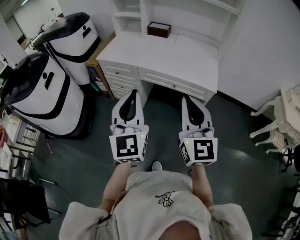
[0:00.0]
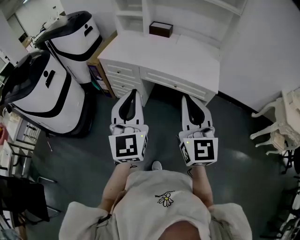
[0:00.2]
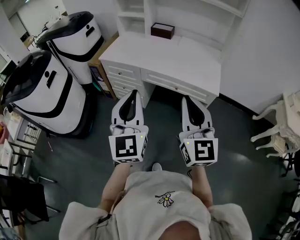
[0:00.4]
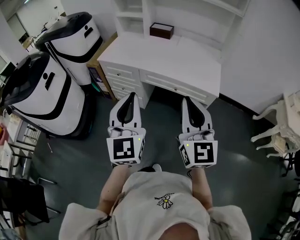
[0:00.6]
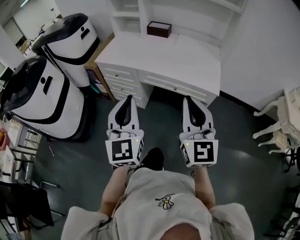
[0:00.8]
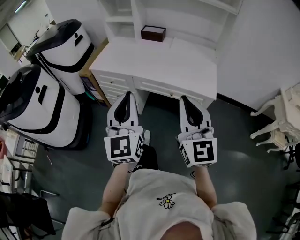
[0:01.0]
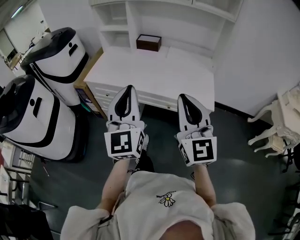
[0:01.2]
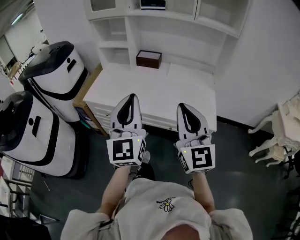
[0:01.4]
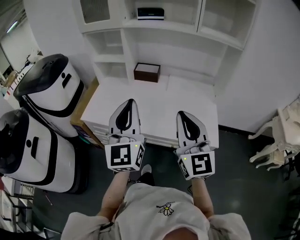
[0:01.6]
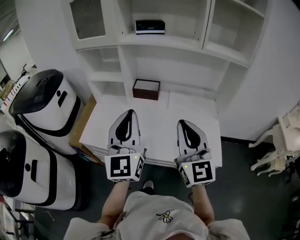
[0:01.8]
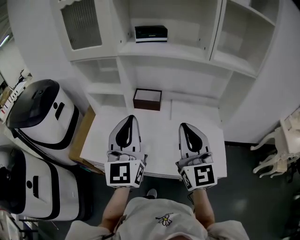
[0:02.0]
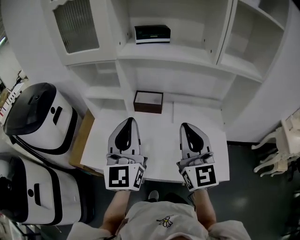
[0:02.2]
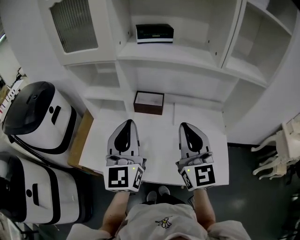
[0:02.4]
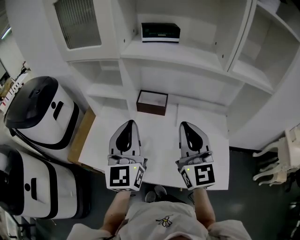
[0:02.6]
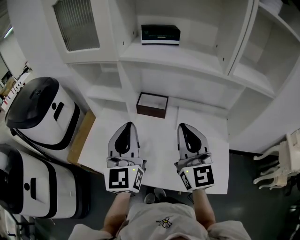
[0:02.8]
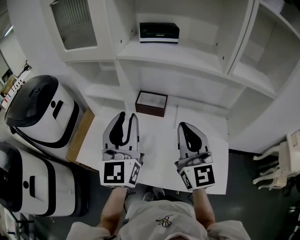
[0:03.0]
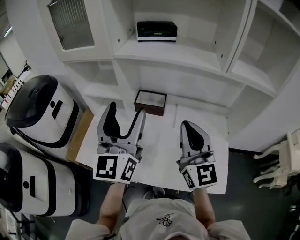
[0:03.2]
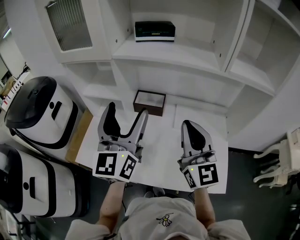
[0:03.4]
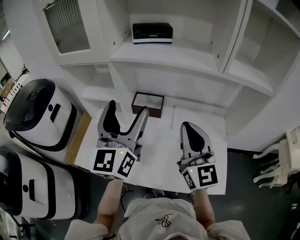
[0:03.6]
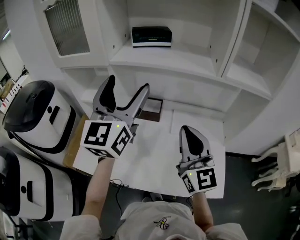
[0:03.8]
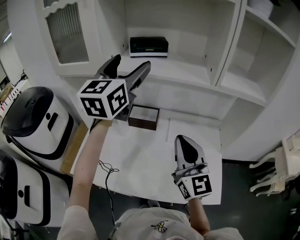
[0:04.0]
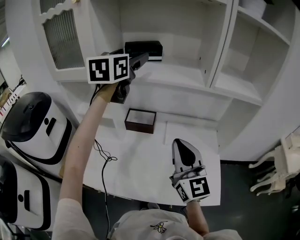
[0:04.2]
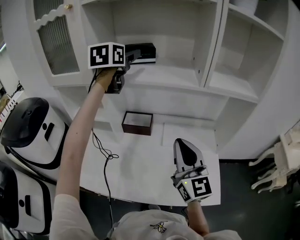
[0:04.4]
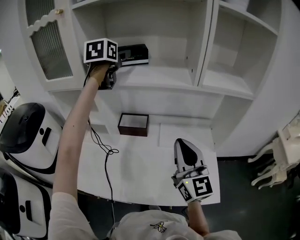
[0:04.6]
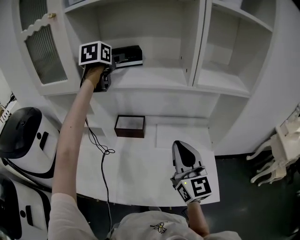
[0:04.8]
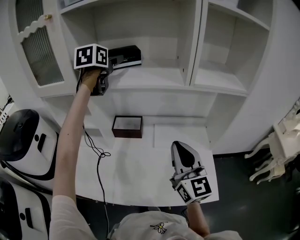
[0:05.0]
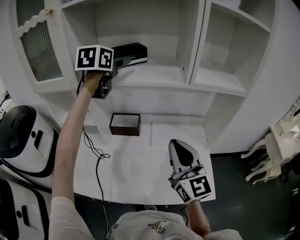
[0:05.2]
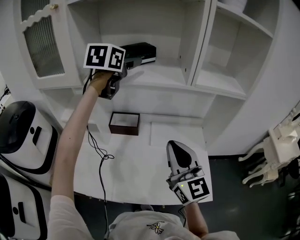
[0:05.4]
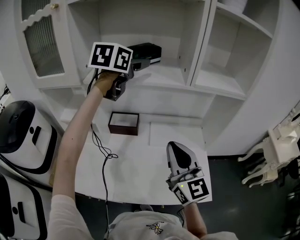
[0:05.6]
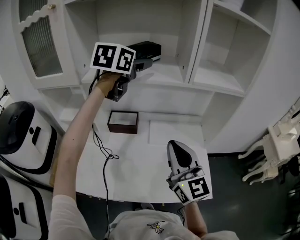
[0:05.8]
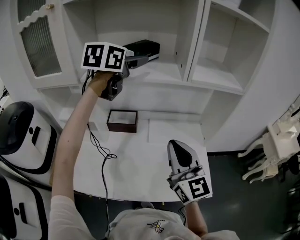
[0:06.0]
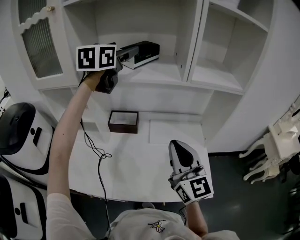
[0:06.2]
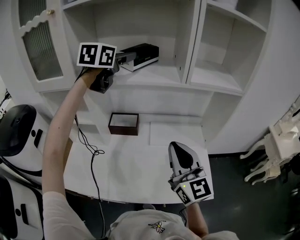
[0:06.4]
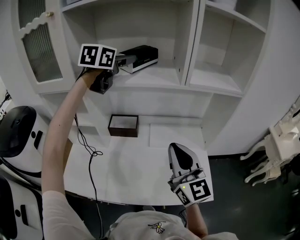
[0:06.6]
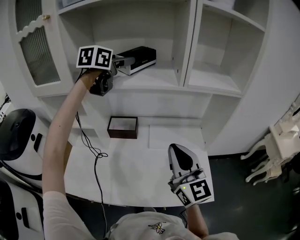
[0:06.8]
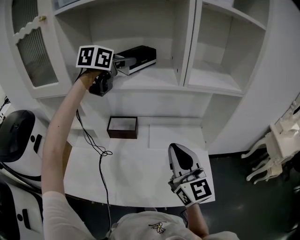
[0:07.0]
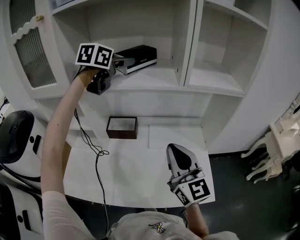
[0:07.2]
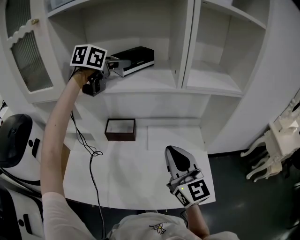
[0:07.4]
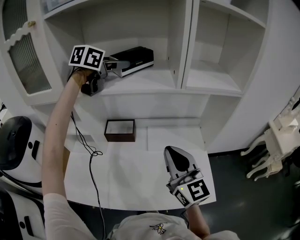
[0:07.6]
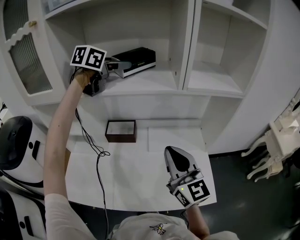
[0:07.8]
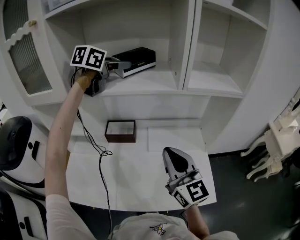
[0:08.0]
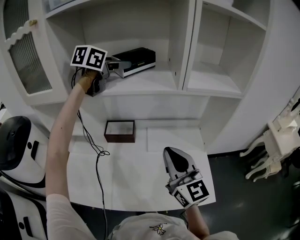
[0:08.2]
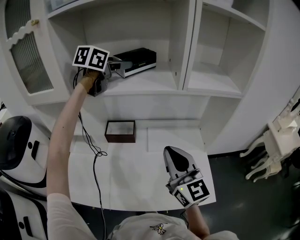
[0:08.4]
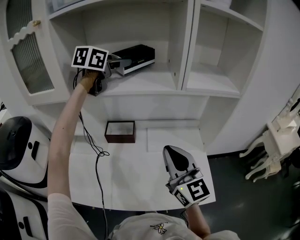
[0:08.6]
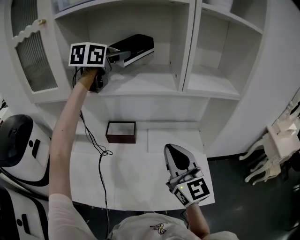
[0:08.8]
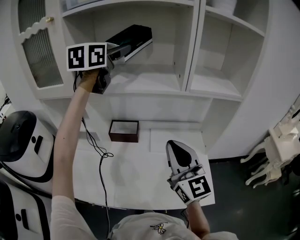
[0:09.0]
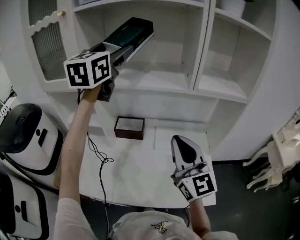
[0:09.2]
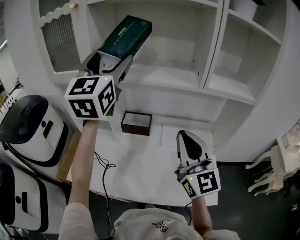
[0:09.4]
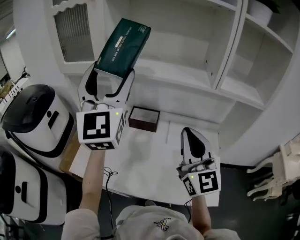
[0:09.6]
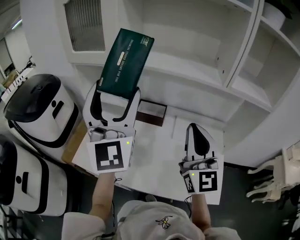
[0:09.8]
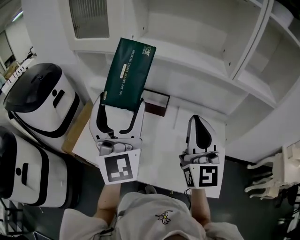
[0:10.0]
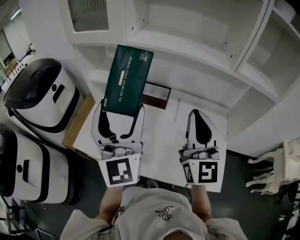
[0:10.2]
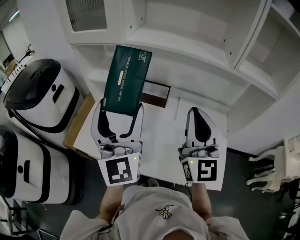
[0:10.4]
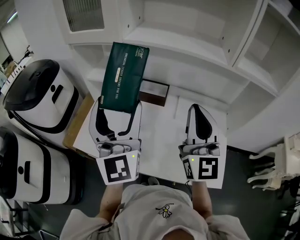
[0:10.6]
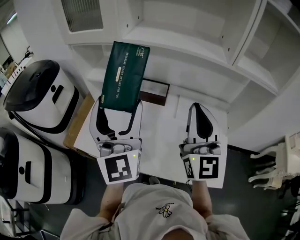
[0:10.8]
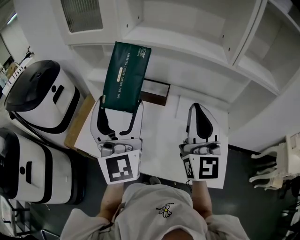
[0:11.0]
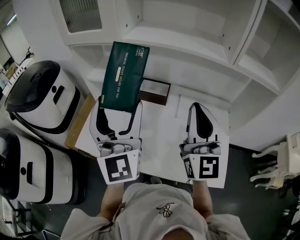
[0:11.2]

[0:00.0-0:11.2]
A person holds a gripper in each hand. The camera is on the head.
0:00.0 to 0:01.6: Both grippers travel together forward, about 30 cm.
0:01.6 to 0:03.2: Both grippers travel together forward, roughly 30 cm. The left gripper opens up.
0:03.2 to 0:04.8: The left gripper goes some 30 cm forward, and points its fingers some 40 degrees further downward; the right gripper is displaced to the right by approximately 5 cm.
0:04.8 to 0:06.4: The left gripper moves to the right, approximately 10 cm, and changes its angle by about 20 degrees.
0:06.4 to 0:08.0: The left gripper moves some 5 cm, and rotates roughly 20 degrees.
0:08.0 to 0:09.6: The right gripper moves upward, approximately 5 cm. The left gripper moves backward and to the left, about 30 cm, and points its fingers approximately 50 degrees further upward.
0:09.6 to 0:11.2: The left gripper travels downward and backward by some 15 cm.

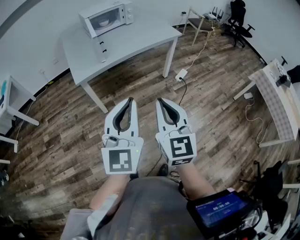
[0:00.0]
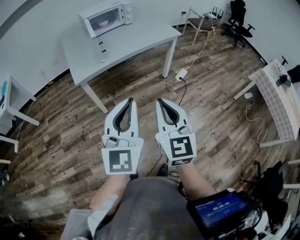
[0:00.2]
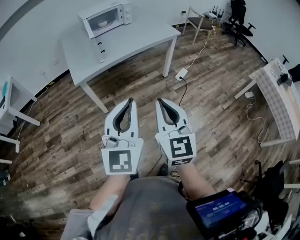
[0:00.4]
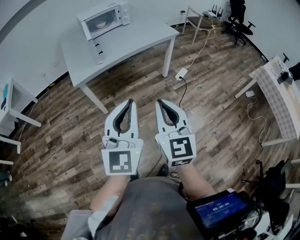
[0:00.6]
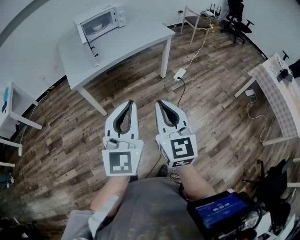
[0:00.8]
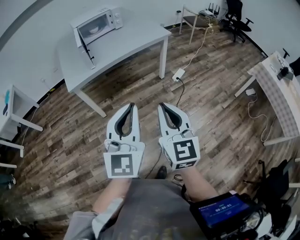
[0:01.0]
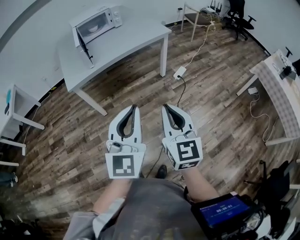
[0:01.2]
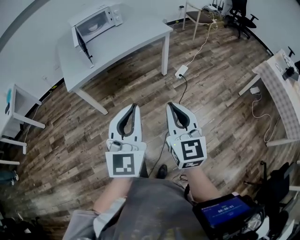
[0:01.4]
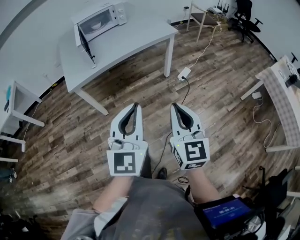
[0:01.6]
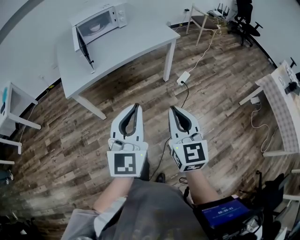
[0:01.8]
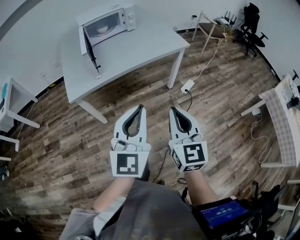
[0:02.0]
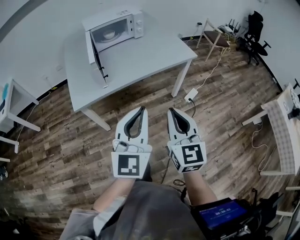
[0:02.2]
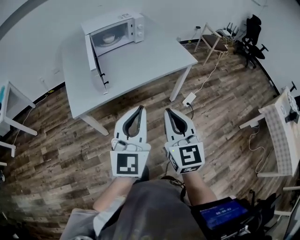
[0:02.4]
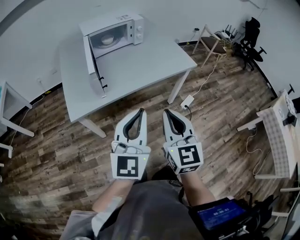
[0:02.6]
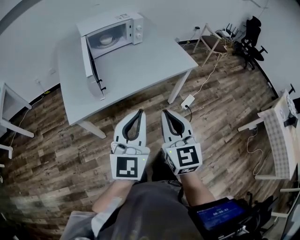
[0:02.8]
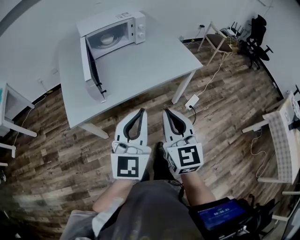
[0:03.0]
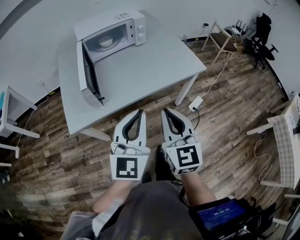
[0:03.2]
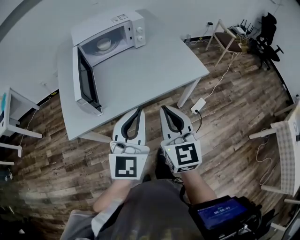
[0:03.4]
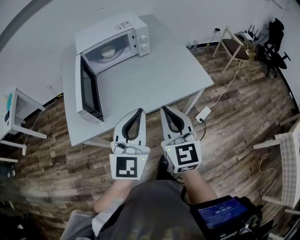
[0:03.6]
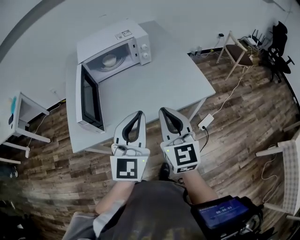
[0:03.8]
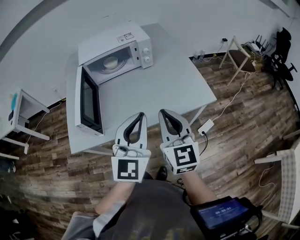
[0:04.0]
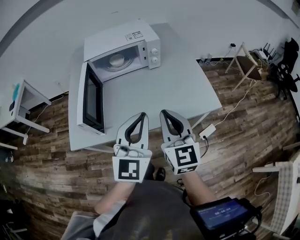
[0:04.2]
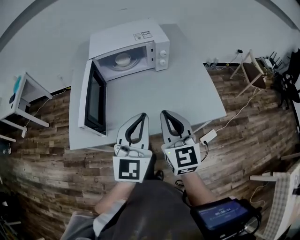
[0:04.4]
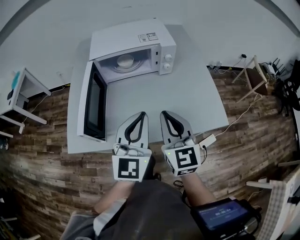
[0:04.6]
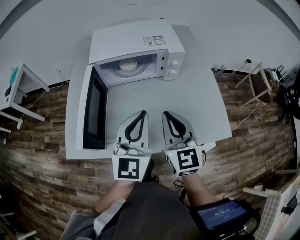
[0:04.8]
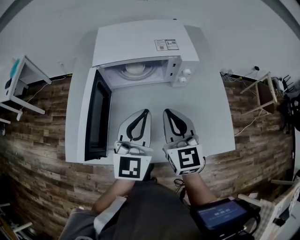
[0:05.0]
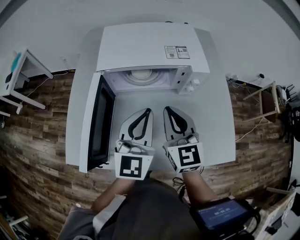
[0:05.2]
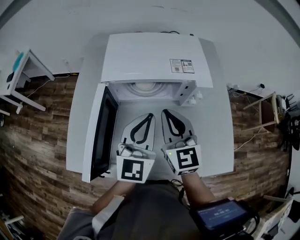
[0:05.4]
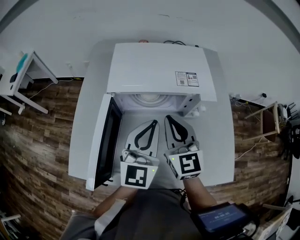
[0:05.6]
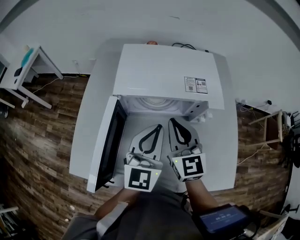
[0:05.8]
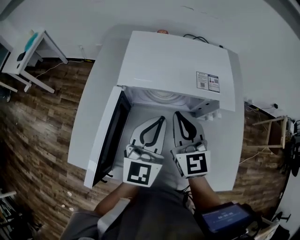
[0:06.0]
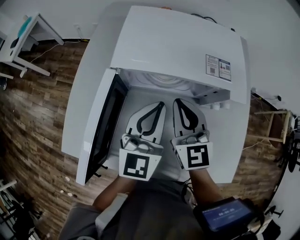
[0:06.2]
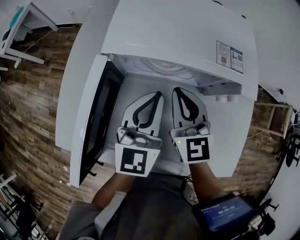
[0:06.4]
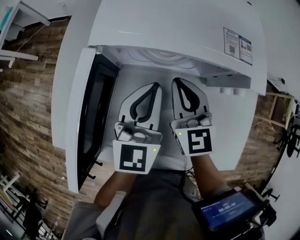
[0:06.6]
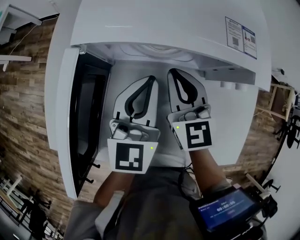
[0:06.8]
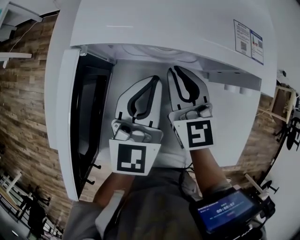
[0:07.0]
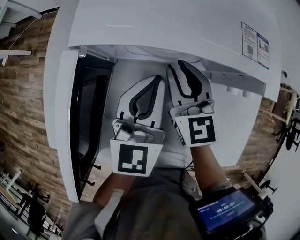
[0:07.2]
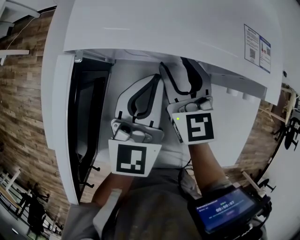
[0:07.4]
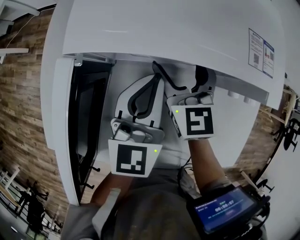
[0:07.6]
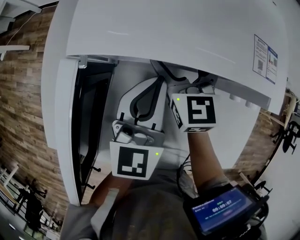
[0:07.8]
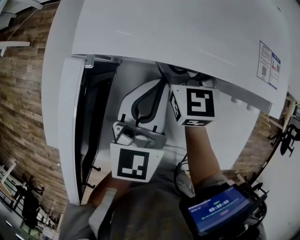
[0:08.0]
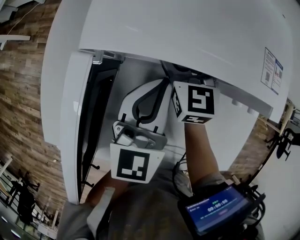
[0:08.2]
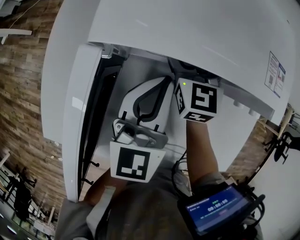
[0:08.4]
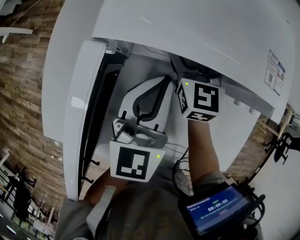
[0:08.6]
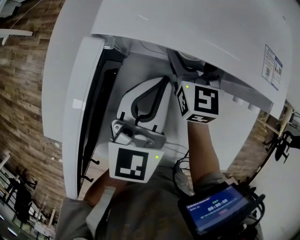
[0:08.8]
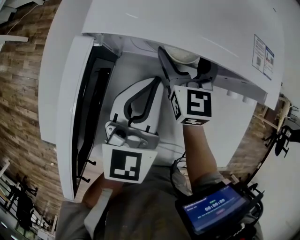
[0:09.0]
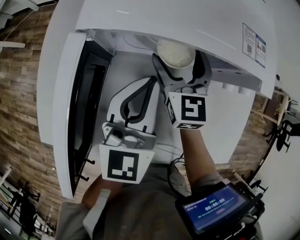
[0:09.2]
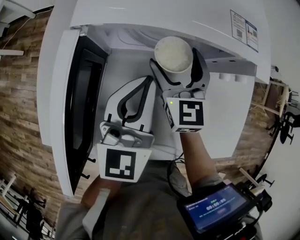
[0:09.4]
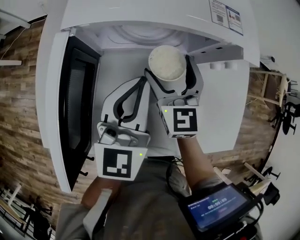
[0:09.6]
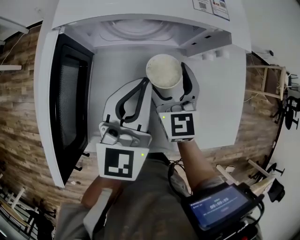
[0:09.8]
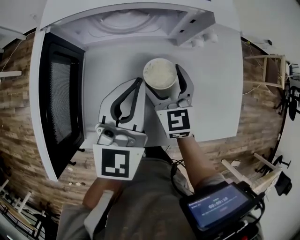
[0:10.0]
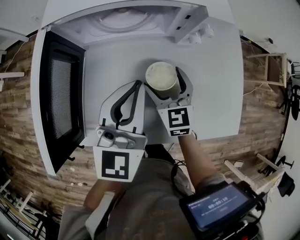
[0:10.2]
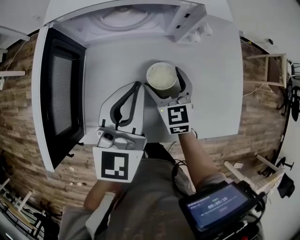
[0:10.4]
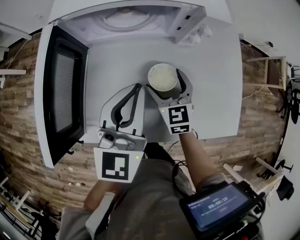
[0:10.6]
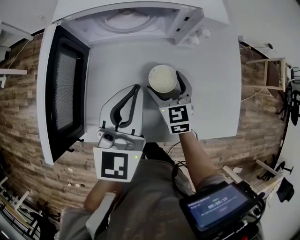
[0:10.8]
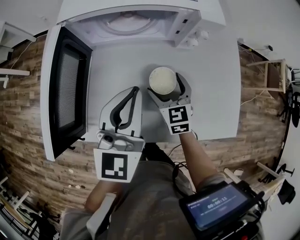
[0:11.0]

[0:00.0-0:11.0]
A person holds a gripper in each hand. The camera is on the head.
0:00.0 to 0:01.6: Both grippers travel together to the right, roughly 15 cm.
0:01.6 to 0:03.2: The right gripper is displaced forward and to the left by approximately 35 cm, while the left gripper travels forward by some 30 cm.
0:03.2 to 0:04.8: Both grippers travel together forward, approximately 30 cm. The right gripper changes its angle by roughly 20 degrees.
0:04.8 to 0:06.2: Both grippers move forward, roughly 20 cm.
0:06.2 to 0:07.8: The right gripper moves forward and downward, about 15 cm, and opens up, while the left gripper is displaced downward by about 10 cm.
0:07.8 to 0:09.4: Both grippers move backward, some 5 cm.
0:09.4 to 0:11.0: The right gripper goes some 20 cm backward, downward and to the right; the left gripper shifts roughly 10 cm backward and to the right.

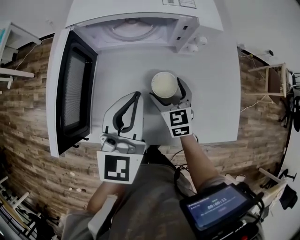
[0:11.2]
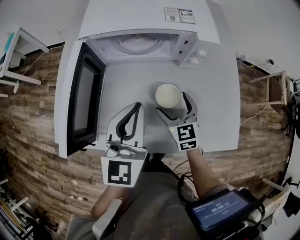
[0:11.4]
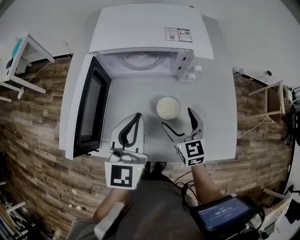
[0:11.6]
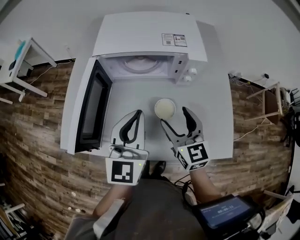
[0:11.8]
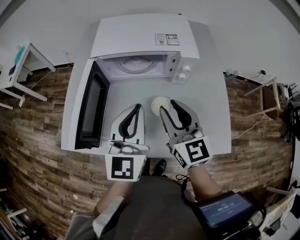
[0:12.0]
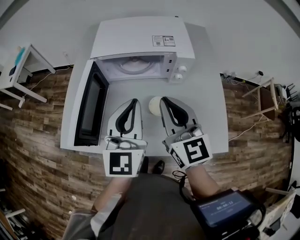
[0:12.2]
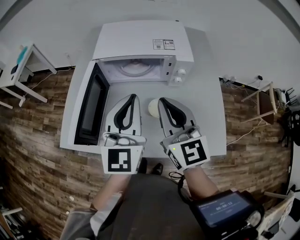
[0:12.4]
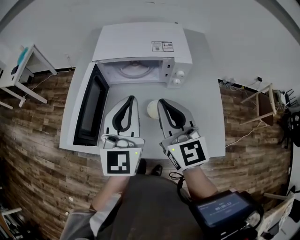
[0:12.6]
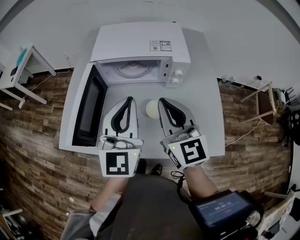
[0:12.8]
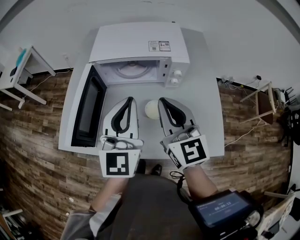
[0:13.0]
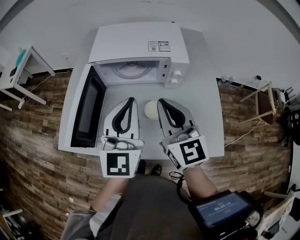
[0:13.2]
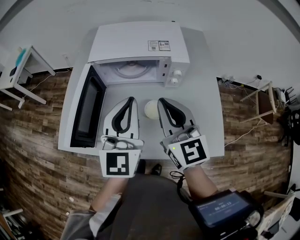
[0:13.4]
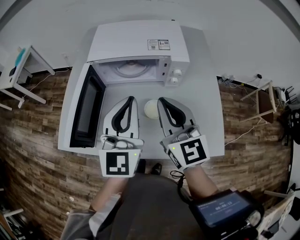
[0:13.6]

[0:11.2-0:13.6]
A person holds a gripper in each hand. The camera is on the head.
0:11.2 to 0:12.4: The right gripper is displaced upward by about 30 cm, turns by approximately 30 degrees, and closes up. The left gripper travels upward by roughly 10 cm.
0:12.4 to 0:13.6: There are only small adjustments of the grippers.
